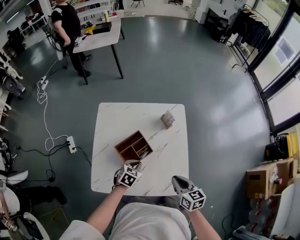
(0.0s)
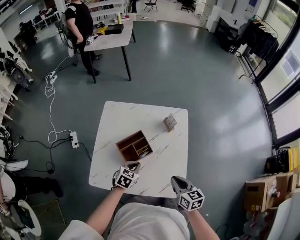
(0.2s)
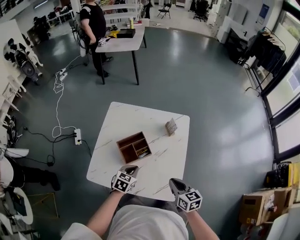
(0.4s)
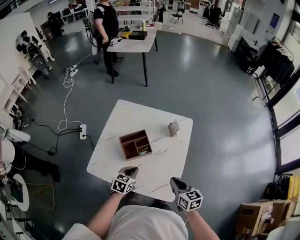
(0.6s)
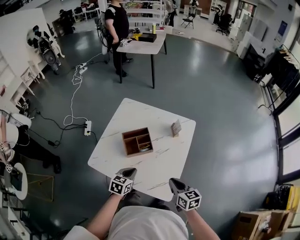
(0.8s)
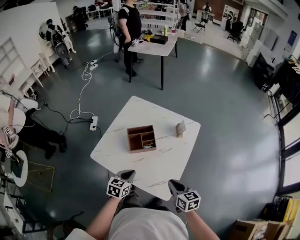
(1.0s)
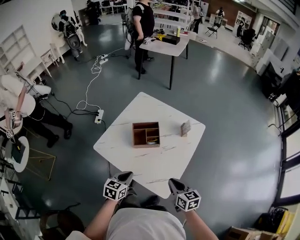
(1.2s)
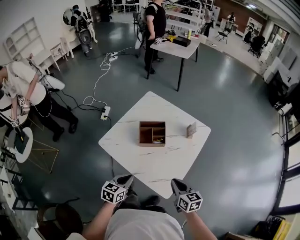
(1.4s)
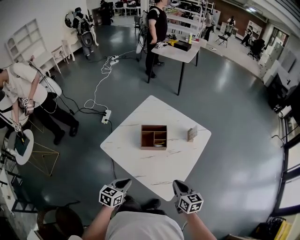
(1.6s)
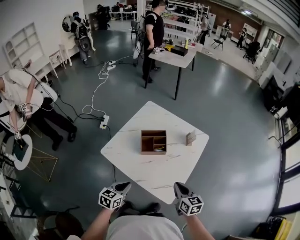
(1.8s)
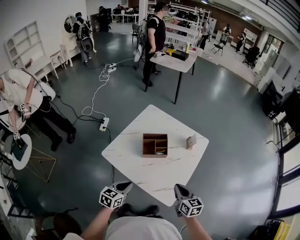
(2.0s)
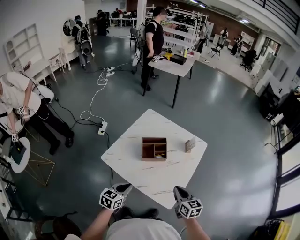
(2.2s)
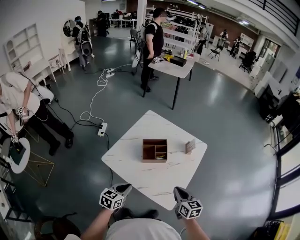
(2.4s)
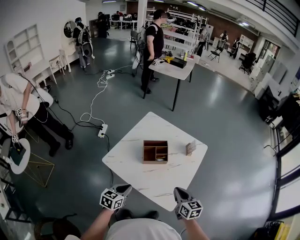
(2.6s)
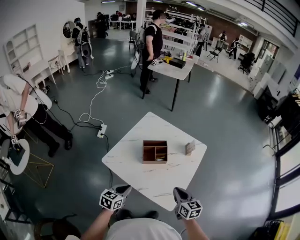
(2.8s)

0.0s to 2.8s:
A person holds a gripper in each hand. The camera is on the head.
0.0s to 1.4s: The right gripper moves roughly 10 cm, and turns by approximately 30 degrees. The left gripper shifts by about 25 cm, and swivels approximately 50 degrees.
1.4s to 2.8s: The right gripper changes place by some 5 cm; the left gripper goes roughly 5 cm to the left.

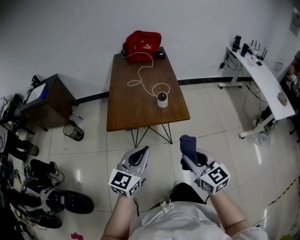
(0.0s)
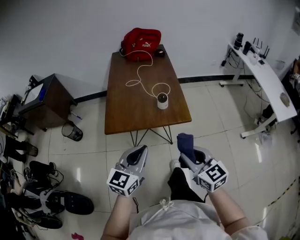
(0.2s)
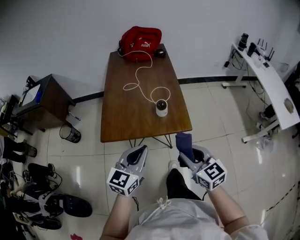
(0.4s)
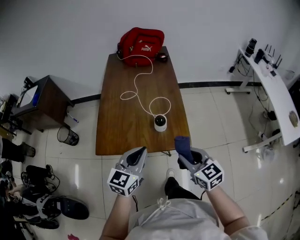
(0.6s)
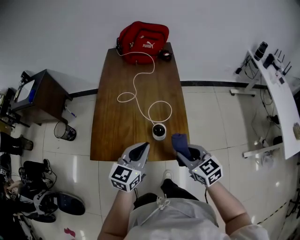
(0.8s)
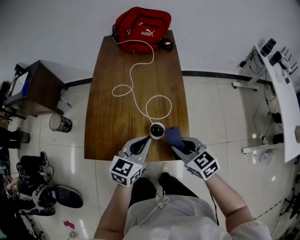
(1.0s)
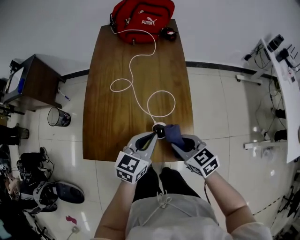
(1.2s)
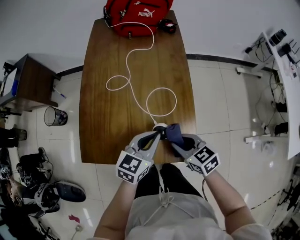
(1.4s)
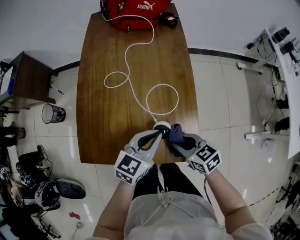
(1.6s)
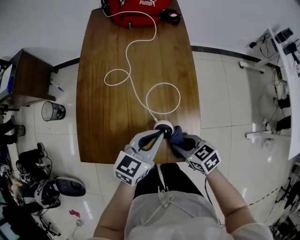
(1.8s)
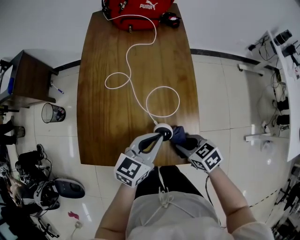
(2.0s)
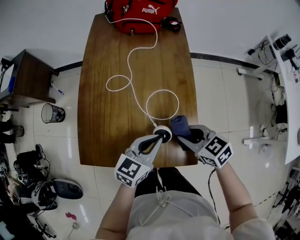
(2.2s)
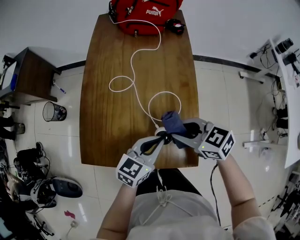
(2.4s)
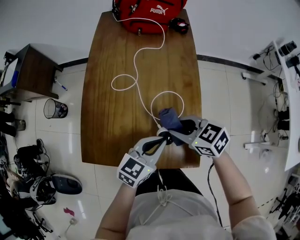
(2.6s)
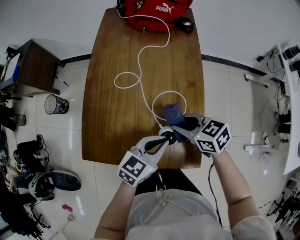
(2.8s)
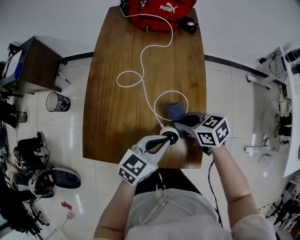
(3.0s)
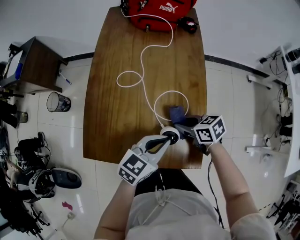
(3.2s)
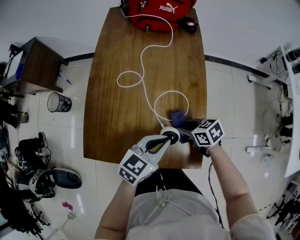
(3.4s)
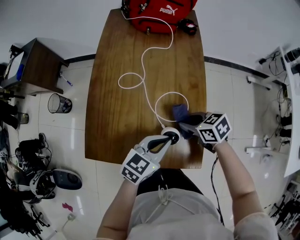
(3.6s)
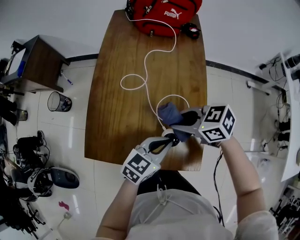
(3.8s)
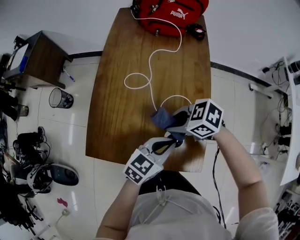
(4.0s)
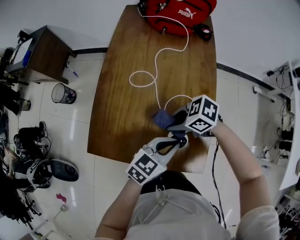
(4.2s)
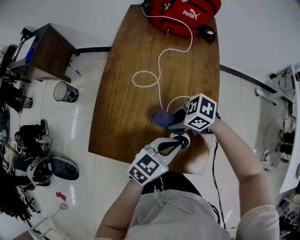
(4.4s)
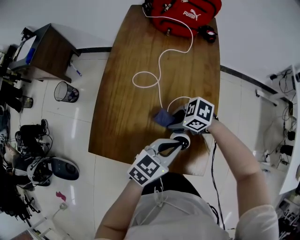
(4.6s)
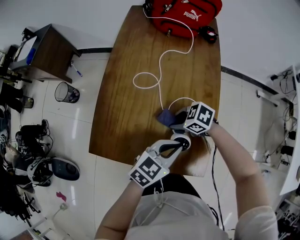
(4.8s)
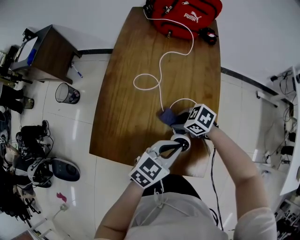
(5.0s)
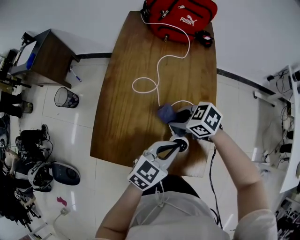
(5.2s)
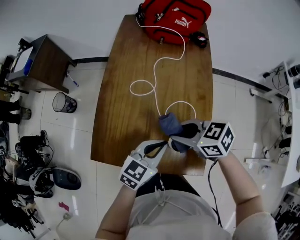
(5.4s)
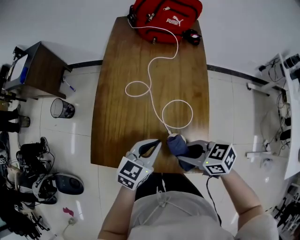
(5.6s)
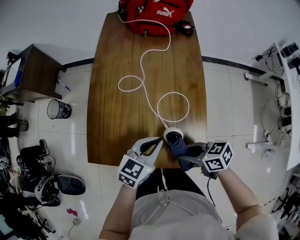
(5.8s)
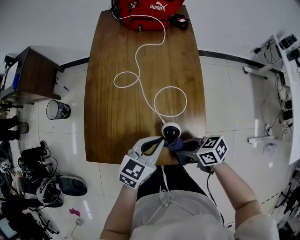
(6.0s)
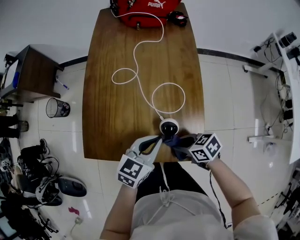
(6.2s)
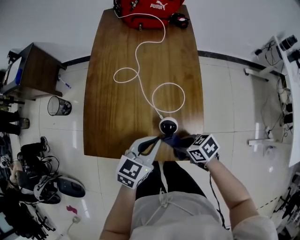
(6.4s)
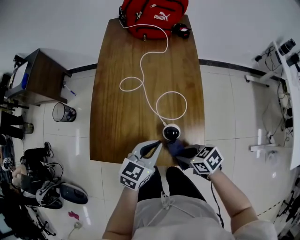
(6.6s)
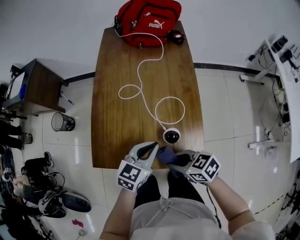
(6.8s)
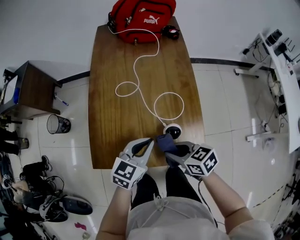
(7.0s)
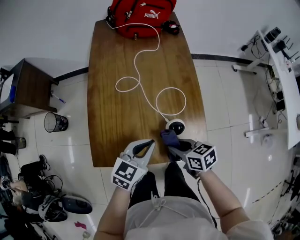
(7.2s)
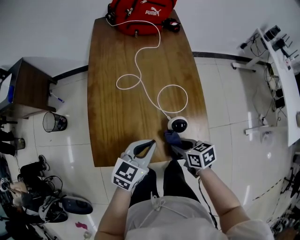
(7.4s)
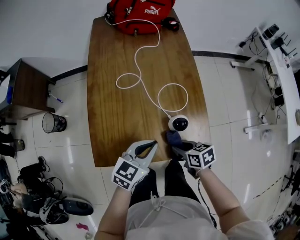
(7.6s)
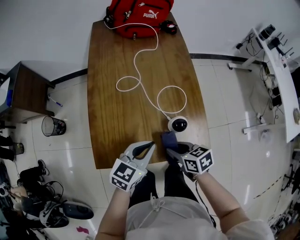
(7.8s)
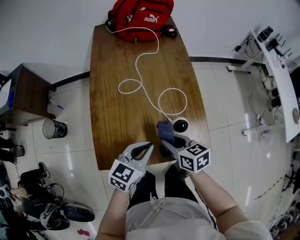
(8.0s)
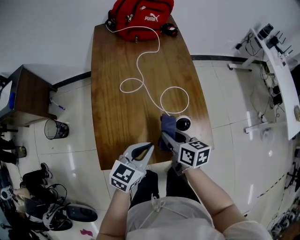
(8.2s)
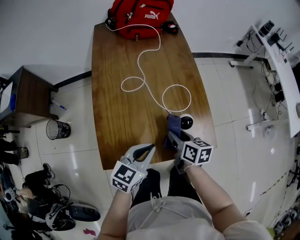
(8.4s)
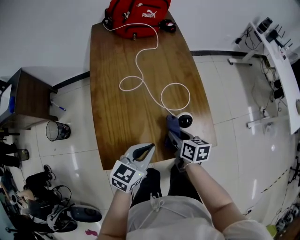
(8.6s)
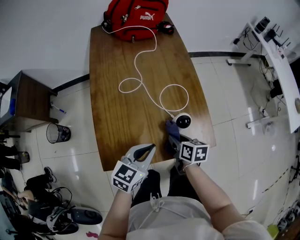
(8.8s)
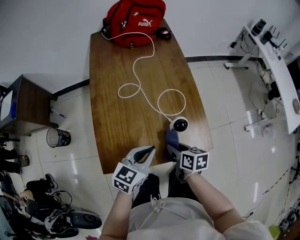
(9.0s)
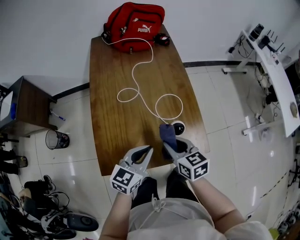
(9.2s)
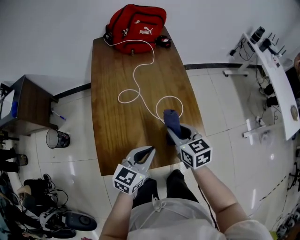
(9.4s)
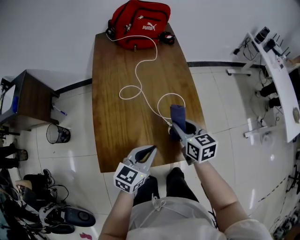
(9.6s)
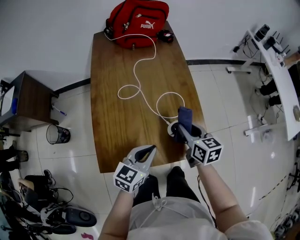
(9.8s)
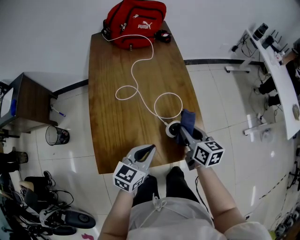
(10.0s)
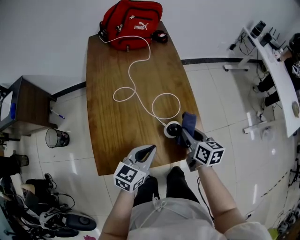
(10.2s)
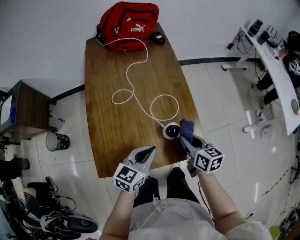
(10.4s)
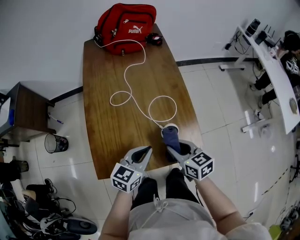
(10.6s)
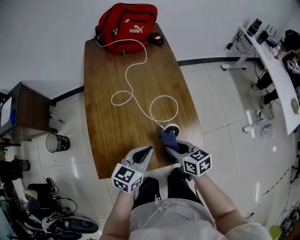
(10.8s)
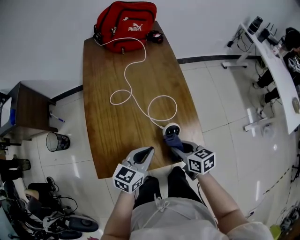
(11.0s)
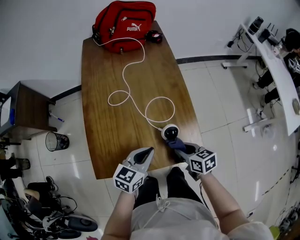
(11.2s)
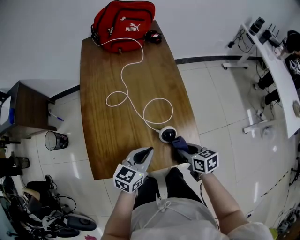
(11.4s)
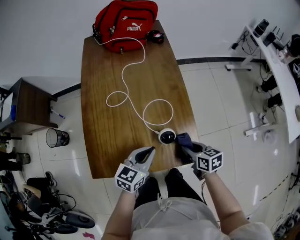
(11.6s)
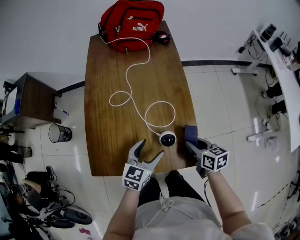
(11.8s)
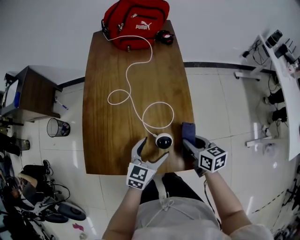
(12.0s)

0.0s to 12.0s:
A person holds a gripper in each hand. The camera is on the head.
0.0s to 1.6s: The two grippers travel together, forward, some 40 cm. The grippers both shift downward by about 20 cm. The left gripper turns by approximately 20 degrees; the right gripper swivels about 40 degrees.
1.6s to 3.0s: The right gripper travels forward by roughly 10 cm.
3.0s to 4.4s: The right gripper goes up and down, some 15 cm each way, reversing 2 times, and turns by approximately 40 degrees.
4.4s to 6.0s: The right gripper moves up and down over roughly 15 cm, changing direction 2 times, and rotates about 40 degrees.
6.0s to 7.6s: The left gripper shifts by approximately 10 cm; the right gripper moves up and down over roughly 10 cm, changing direction 2 times, and changes its angle by approximately 30 degrees.
7.6s to 9.0s: The right gripper goes upward and returns, roughly 10 cm each way, and changes its angle by approximately 20 degrees.
9.0s to 10.4s: The right gripper travels to the right, upward and forward by approximately 10 cm.
10.4s to 12.0s: The left gripper goes roughly 10 cm to the right, forward and downward, and opens up; the right gripper heads to the right, covering some 5 cm.

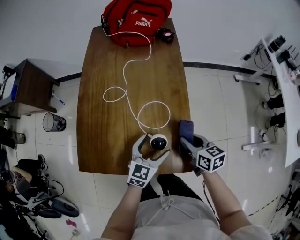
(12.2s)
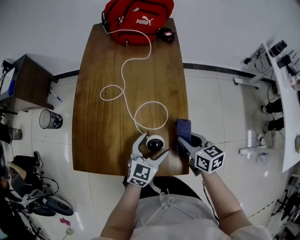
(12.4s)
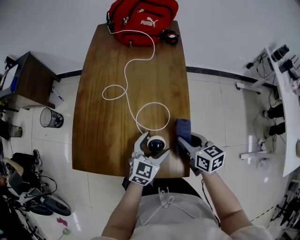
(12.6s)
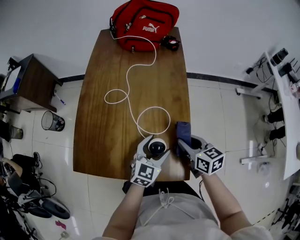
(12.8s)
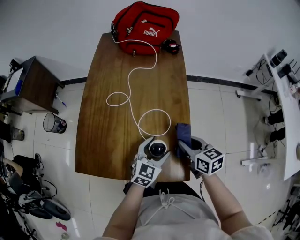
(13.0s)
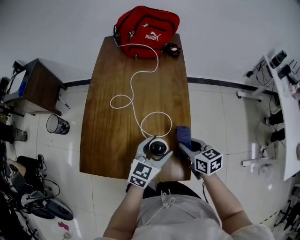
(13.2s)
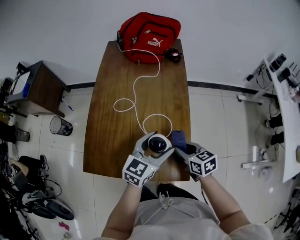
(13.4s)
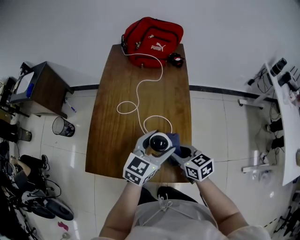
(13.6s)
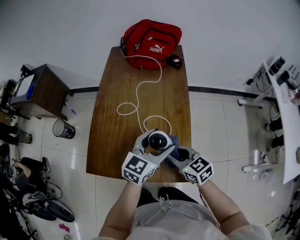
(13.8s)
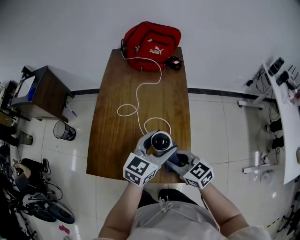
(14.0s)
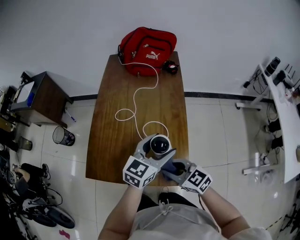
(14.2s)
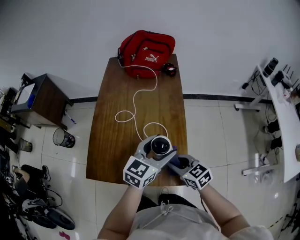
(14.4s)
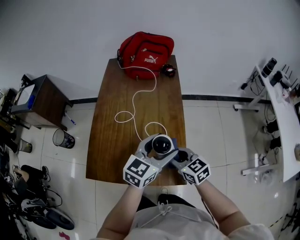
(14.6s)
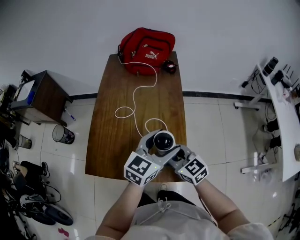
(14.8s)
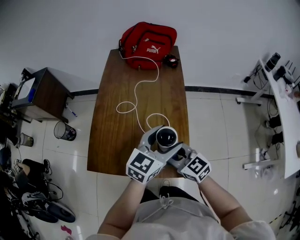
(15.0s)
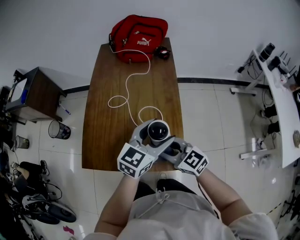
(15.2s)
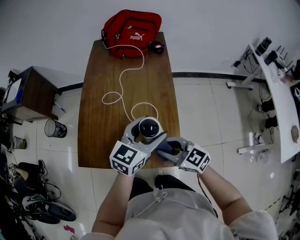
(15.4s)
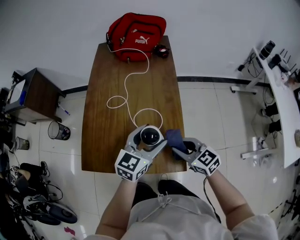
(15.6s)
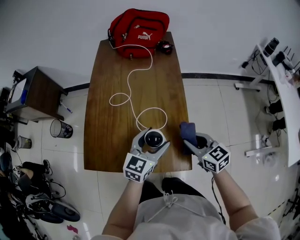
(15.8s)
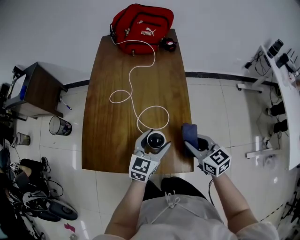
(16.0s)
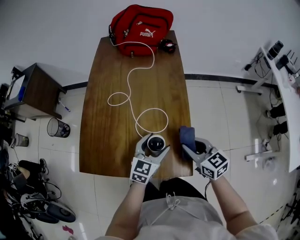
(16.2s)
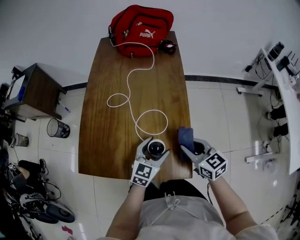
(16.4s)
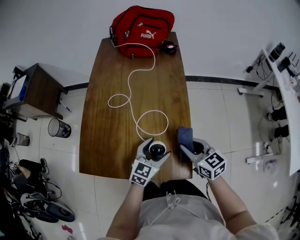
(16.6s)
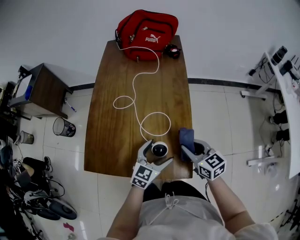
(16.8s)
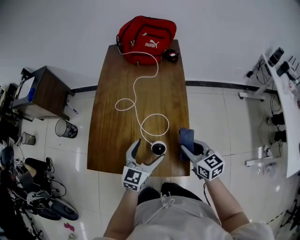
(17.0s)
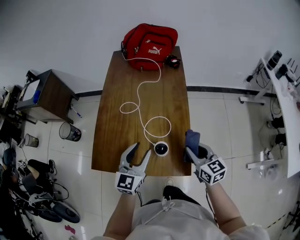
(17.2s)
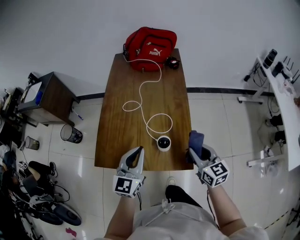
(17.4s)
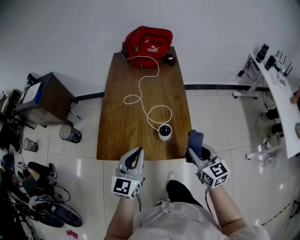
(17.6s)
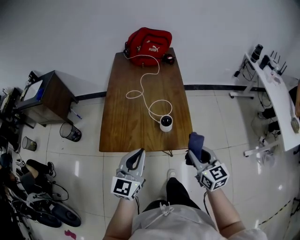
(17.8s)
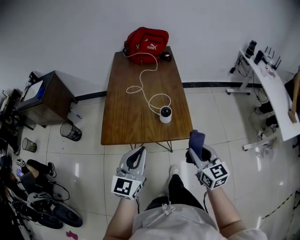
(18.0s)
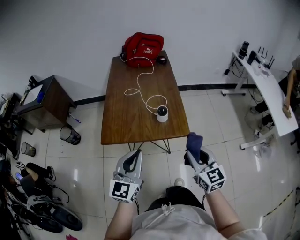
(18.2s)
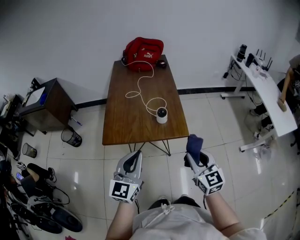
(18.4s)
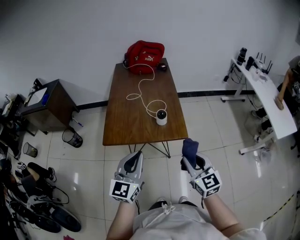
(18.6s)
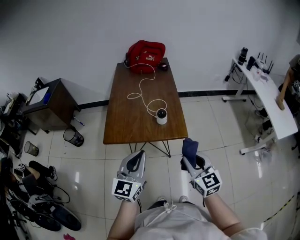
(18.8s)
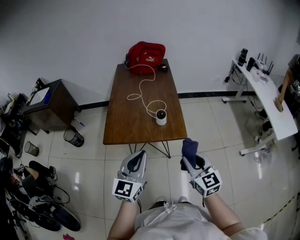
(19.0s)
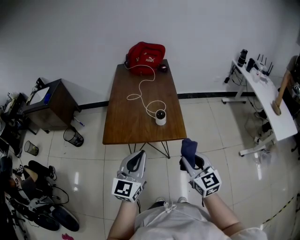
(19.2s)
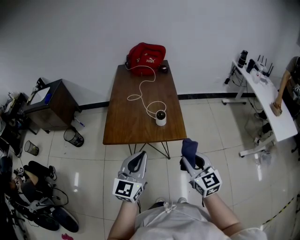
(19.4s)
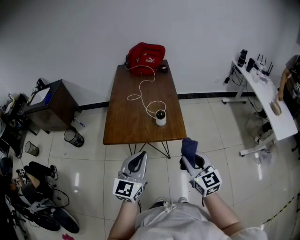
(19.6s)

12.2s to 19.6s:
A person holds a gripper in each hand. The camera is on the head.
12.2s to 13.6s: The left gripper is displaced upward by approximately 15 cm. Meanwhile the right gripper heads to the left and upward, covering about 10 cm.
13.6s to 15.2s: The left gripper ends up about 5 cm from where it was; the right gripper changes place by about 10 cm, and turns by roughly 30 degrees.
15.2s to 16.6s: The left gripper travels downward by about 20 cm. The right gripper shifts approximately 15 cm to the right and downward, and rotates about 20 degrees.
16.6s to 18.2s: The right gripper is displaced backward and upward by roughly 35 cm, and rotates some 30 degrees; the left gripper shifts approximately 40 cm backward, upward and to the left, turns by roughly 20 degrees, and closes up.
18.2s to 19.6s: The left gripper changes place by about 5 cm. Meanwhile the right gripper shifts by approximately 5 cm.

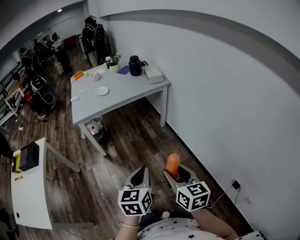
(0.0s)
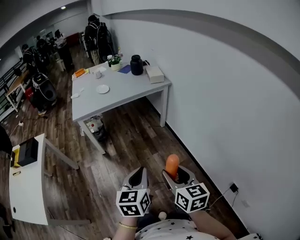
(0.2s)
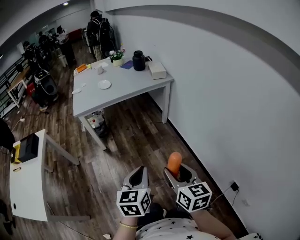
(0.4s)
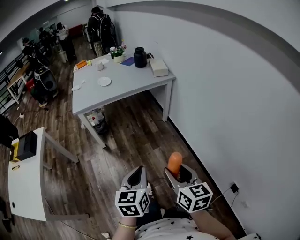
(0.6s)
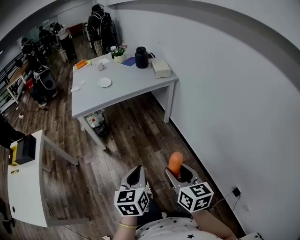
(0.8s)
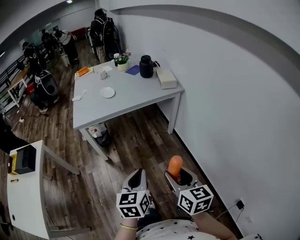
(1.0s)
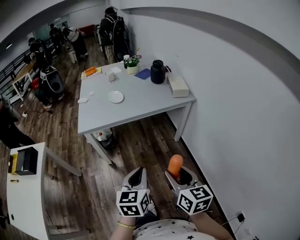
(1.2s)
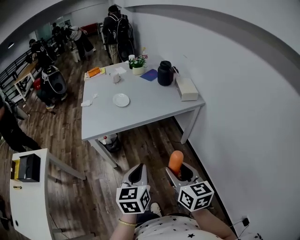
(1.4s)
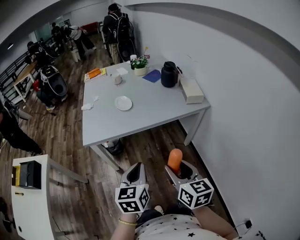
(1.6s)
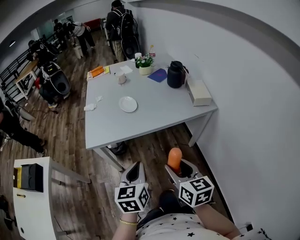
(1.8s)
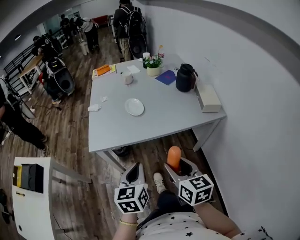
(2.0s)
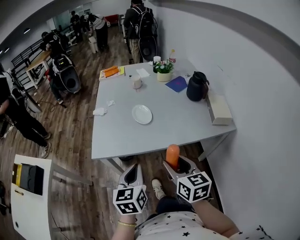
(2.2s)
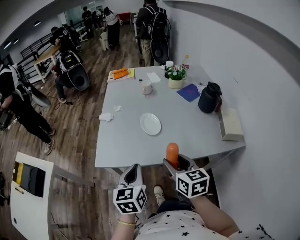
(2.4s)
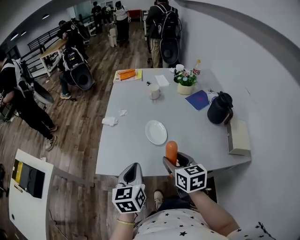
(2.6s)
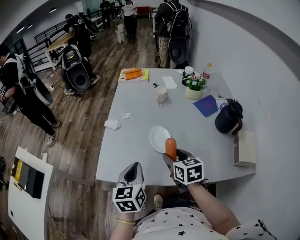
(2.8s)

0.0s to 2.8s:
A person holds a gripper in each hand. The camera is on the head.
0.0s to 1.4s: Both grippers move forward, about 30 cm.
1.4s to 2.8s: Both grippers are carried forward, some 50 cm. The right gripper swivels some 30 degrees. Meanwhile the left gripper changes its angle by about 30 degrees.
